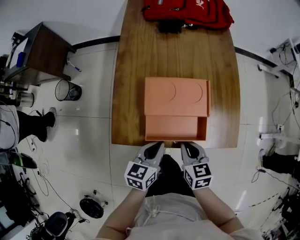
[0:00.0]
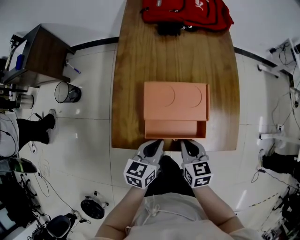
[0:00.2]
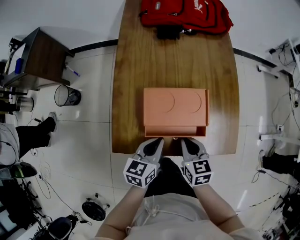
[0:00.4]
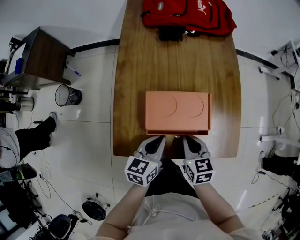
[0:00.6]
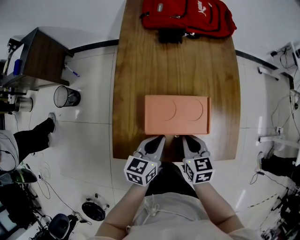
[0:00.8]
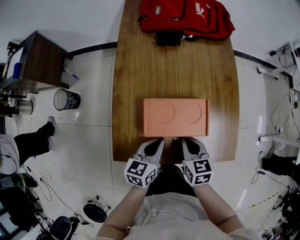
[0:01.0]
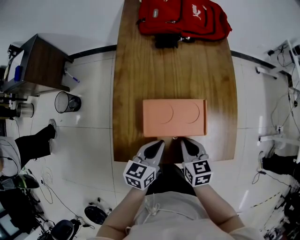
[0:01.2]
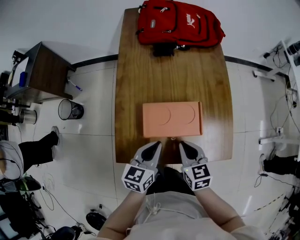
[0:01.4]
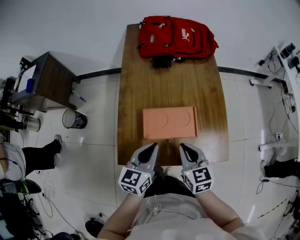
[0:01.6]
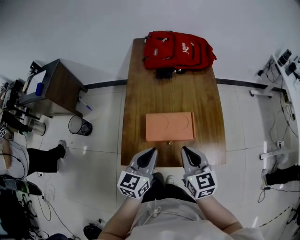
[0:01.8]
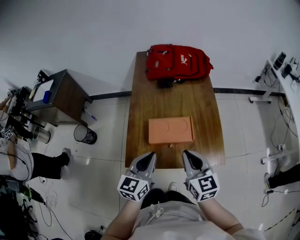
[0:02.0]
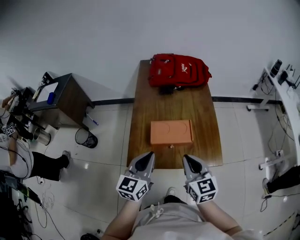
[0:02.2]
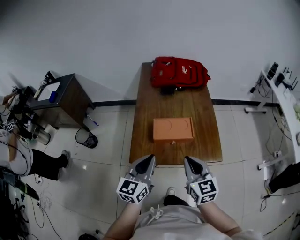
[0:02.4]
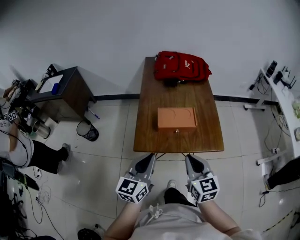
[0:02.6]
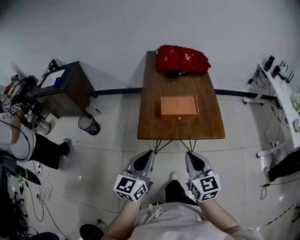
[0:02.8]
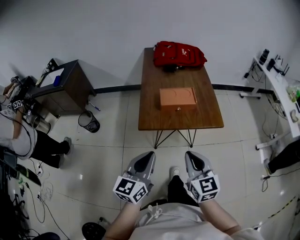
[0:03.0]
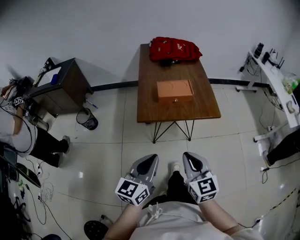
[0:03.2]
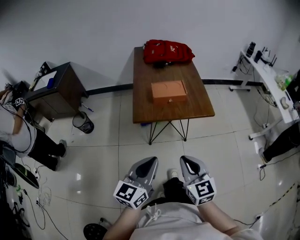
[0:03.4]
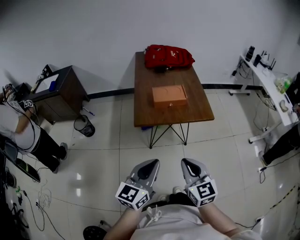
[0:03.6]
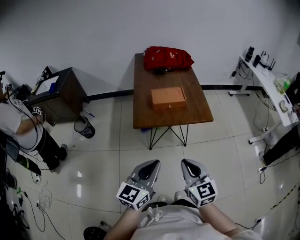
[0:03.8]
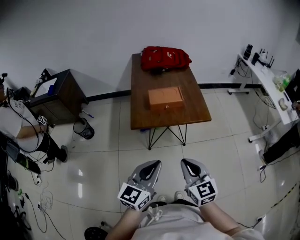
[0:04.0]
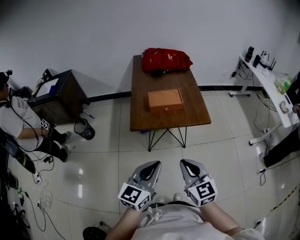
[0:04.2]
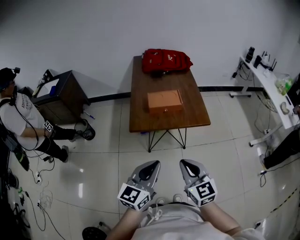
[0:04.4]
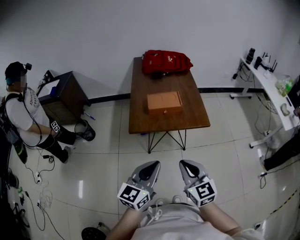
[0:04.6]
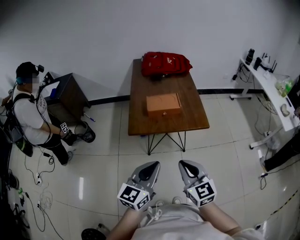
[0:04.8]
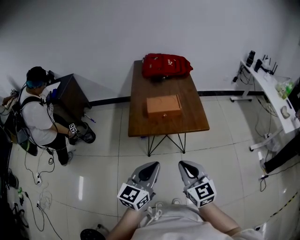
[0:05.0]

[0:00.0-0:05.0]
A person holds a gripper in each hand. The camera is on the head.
0:00.0 to 0:01.6: Both grippers travel together upward and forward, roughly 15 cm.
0:01.6 to 0:03.4: Both grippers are carried backward, about 40 cm.
0:03.4 to 0:05.0: The grippers both shift to the right by about 5 cm.

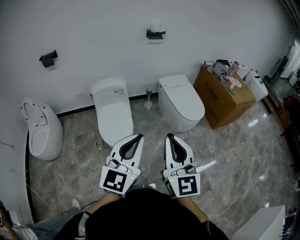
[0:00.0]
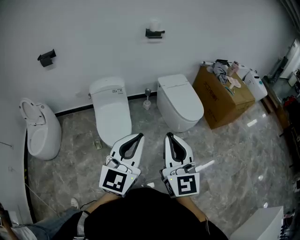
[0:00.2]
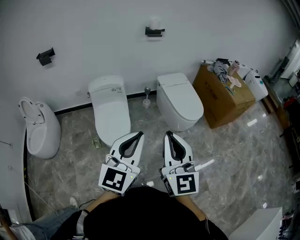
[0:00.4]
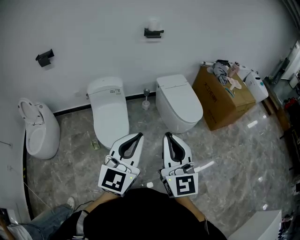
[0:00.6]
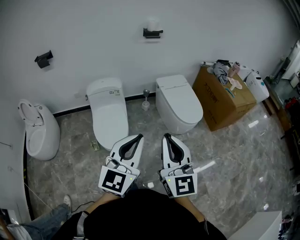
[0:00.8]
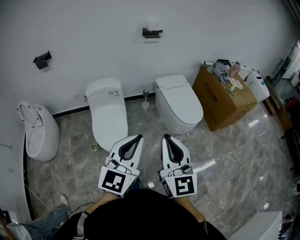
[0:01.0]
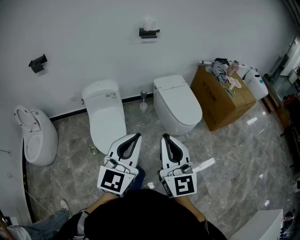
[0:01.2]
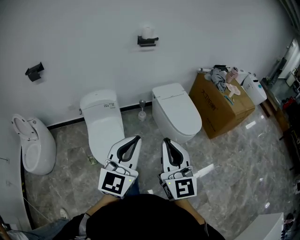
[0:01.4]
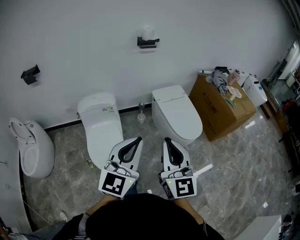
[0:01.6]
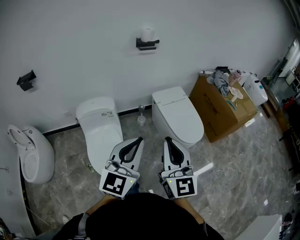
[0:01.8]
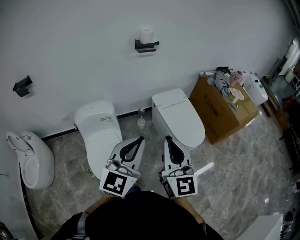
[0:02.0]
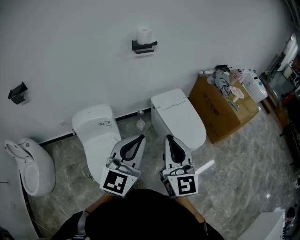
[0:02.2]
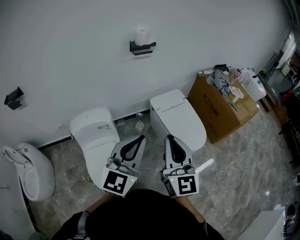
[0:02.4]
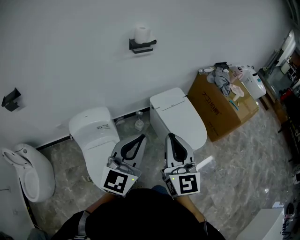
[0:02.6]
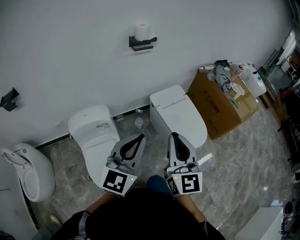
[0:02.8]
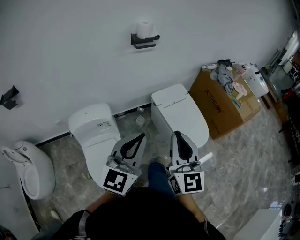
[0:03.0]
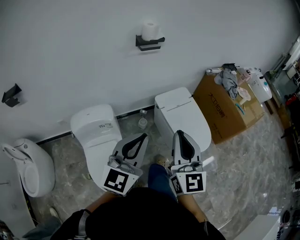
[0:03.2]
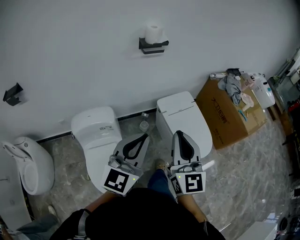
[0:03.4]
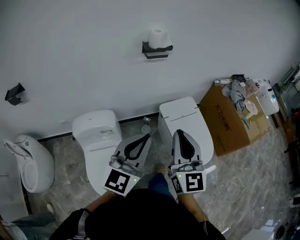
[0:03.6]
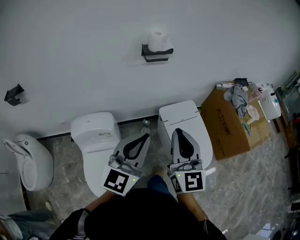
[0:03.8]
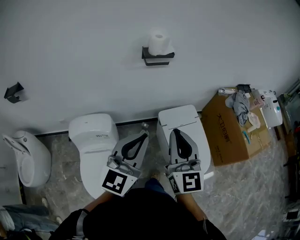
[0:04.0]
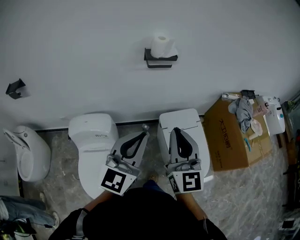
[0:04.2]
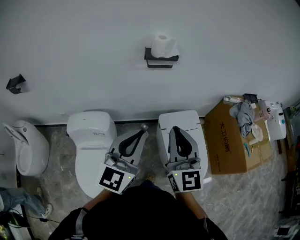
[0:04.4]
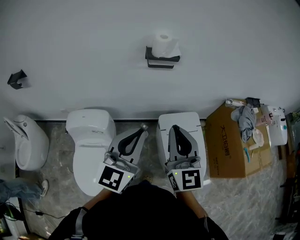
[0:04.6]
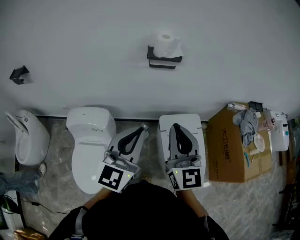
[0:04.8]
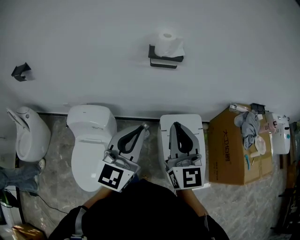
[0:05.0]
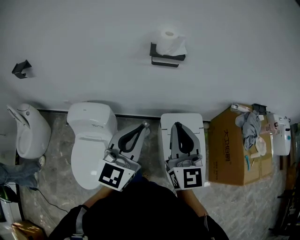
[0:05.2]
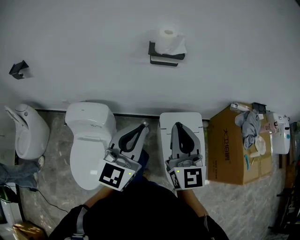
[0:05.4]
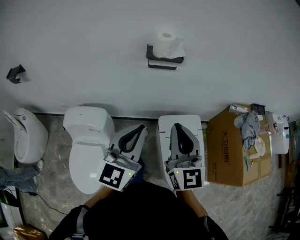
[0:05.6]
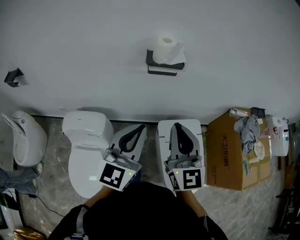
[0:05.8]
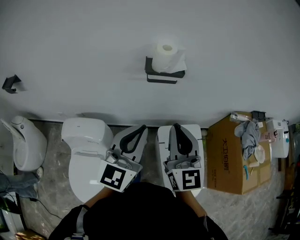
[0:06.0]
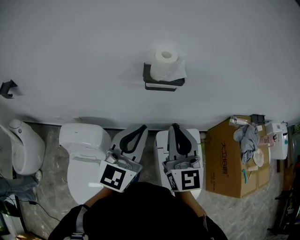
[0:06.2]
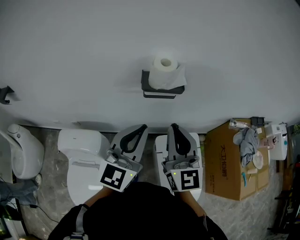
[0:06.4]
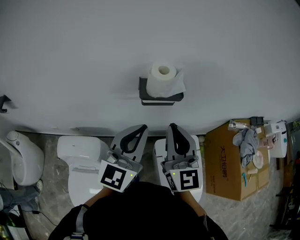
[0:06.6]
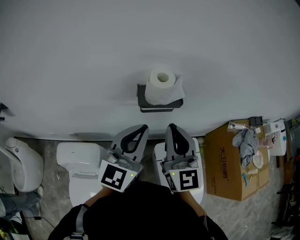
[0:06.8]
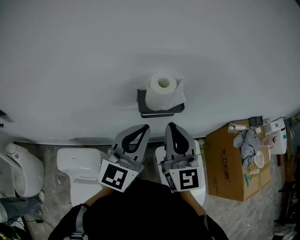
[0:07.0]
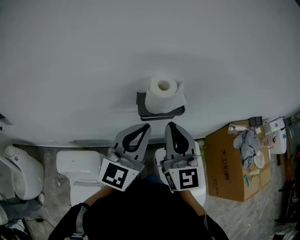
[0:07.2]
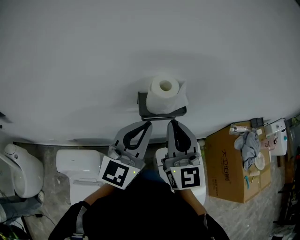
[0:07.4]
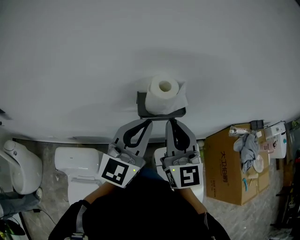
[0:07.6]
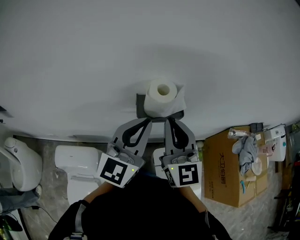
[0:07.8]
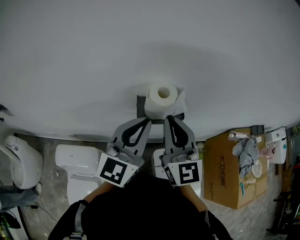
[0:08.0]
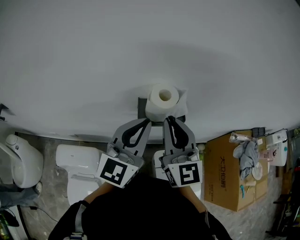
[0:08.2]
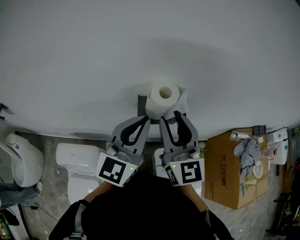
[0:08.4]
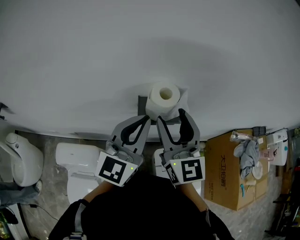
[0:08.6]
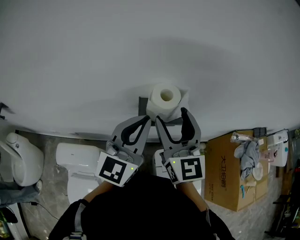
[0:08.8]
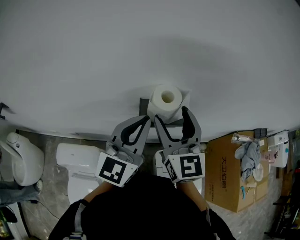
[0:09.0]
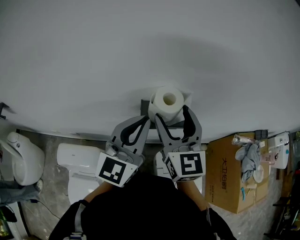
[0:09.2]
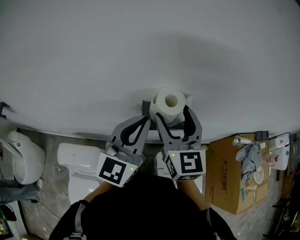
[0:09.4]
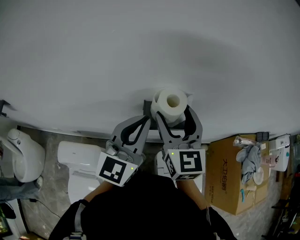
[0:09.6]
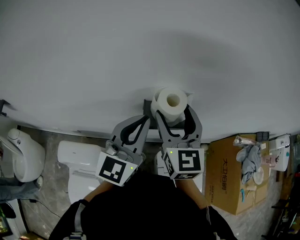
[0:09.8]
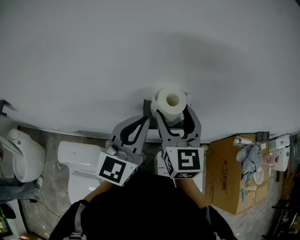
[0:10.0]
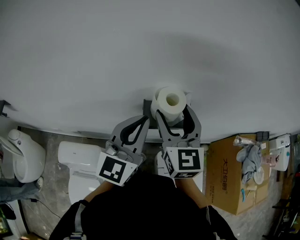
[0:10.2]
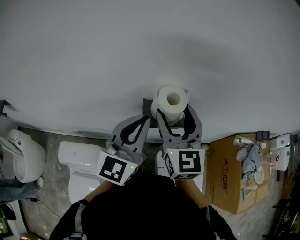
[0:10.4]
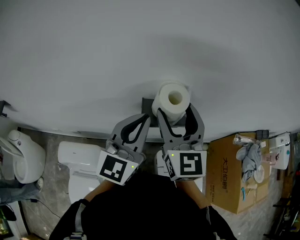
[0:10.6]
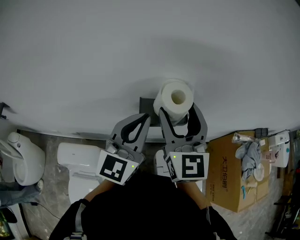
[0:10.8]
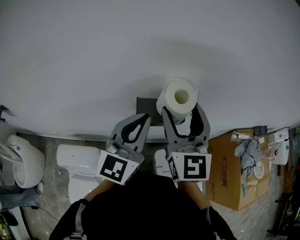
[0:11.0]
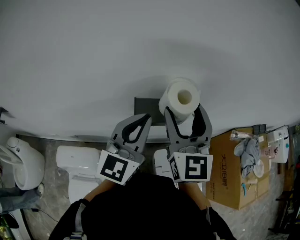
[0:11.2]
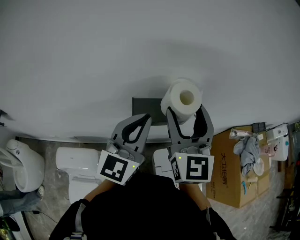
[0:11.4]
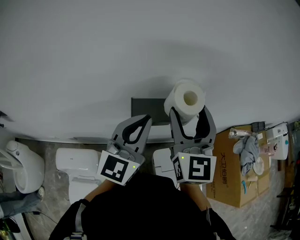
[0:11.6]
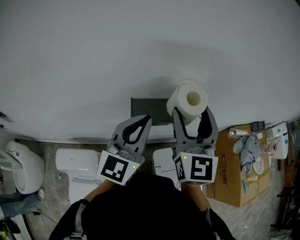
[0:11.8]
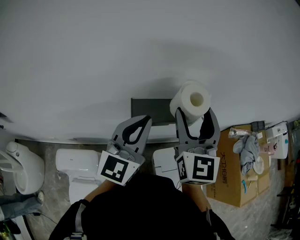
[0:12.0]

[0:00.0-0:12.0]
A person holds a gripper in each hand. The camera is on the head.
0:00.0 to 0:01.6: Both grippers travel together forward, about 20 cm.
0:01.6 to 0:03.0: Both grippers move forward, roughly 25 cm.
0:03.0 to 0:04.4: Both grippers move forward, about 25 cm.
0:04.4 to 0:06.0: Both grippers travel together forward, approximately 15 cm.
0:06.0 to 0:07.6: The two grippers go roughly 20 cm forward.
0:07.6 to 0:09.0: The right gripper moves forward, some 5 cm, and opens up.
0:09.0 to 0:10.4: The grippers stay close to where they were, moving slightly.
0:10.4 to 0:12.0: The right gripper is displaced to the right by roughly 10 cm.

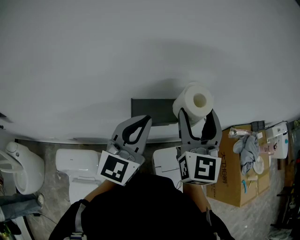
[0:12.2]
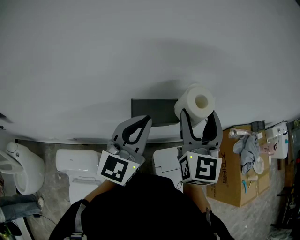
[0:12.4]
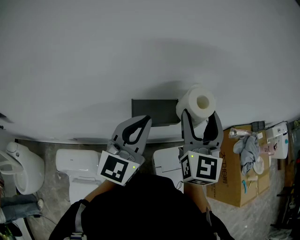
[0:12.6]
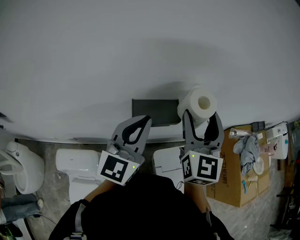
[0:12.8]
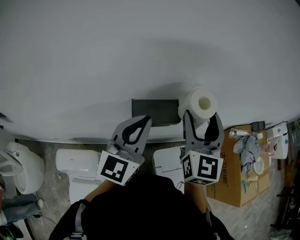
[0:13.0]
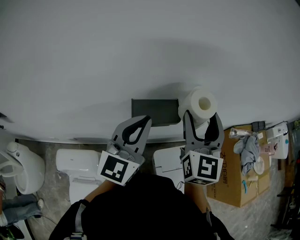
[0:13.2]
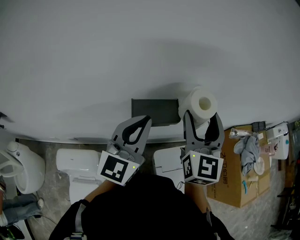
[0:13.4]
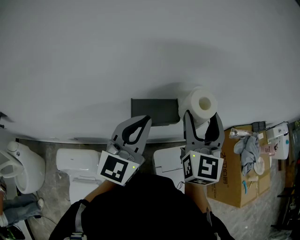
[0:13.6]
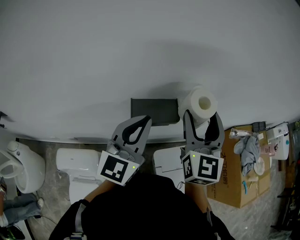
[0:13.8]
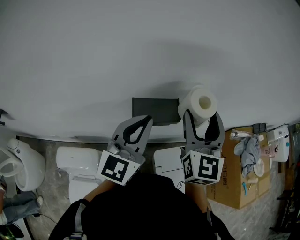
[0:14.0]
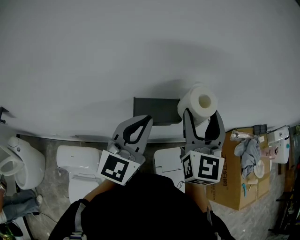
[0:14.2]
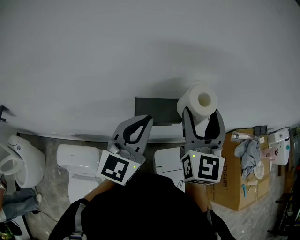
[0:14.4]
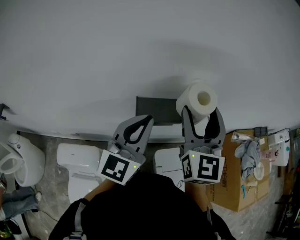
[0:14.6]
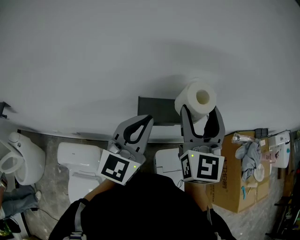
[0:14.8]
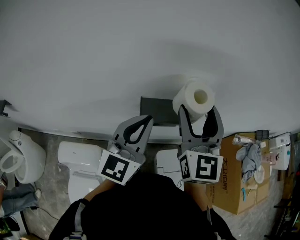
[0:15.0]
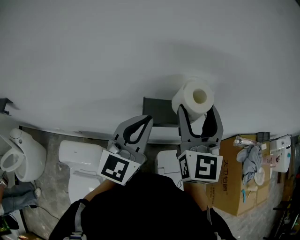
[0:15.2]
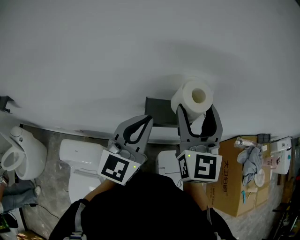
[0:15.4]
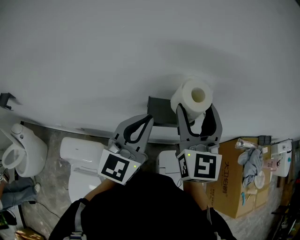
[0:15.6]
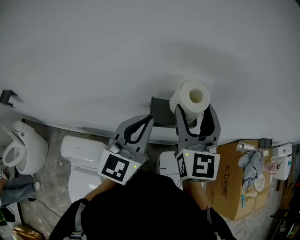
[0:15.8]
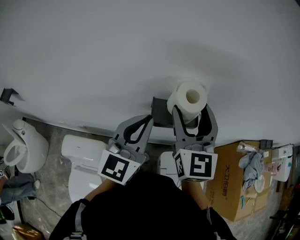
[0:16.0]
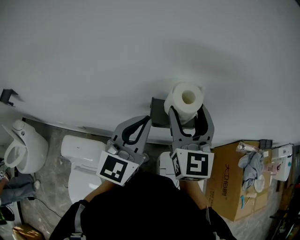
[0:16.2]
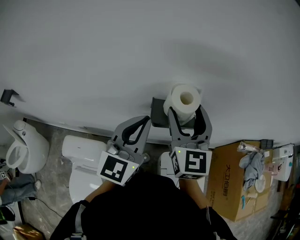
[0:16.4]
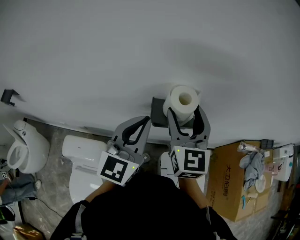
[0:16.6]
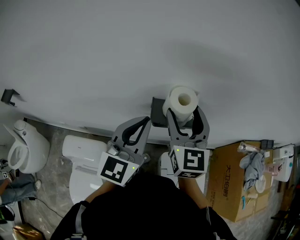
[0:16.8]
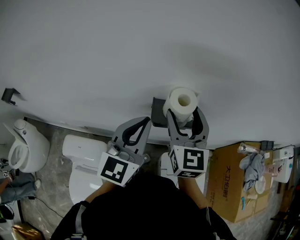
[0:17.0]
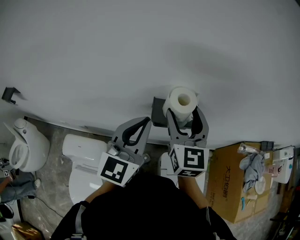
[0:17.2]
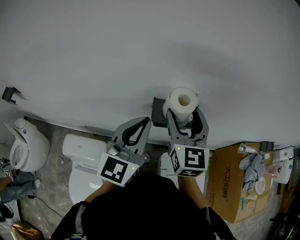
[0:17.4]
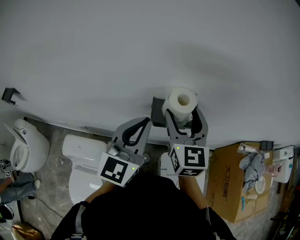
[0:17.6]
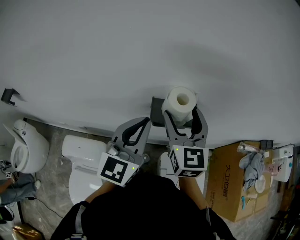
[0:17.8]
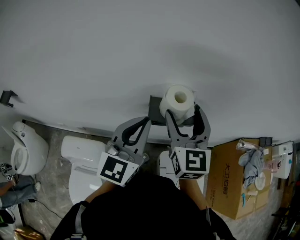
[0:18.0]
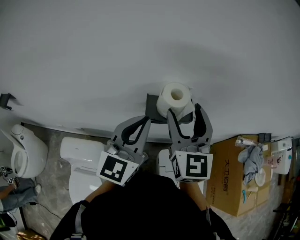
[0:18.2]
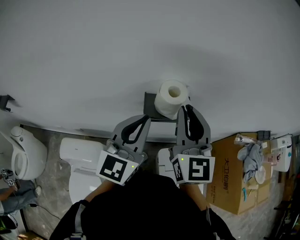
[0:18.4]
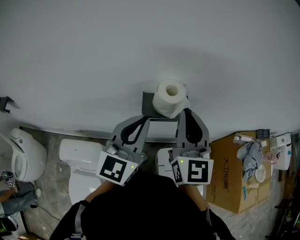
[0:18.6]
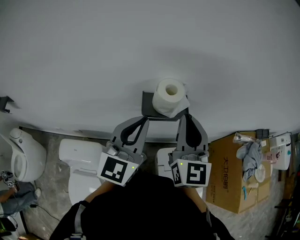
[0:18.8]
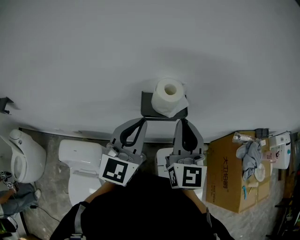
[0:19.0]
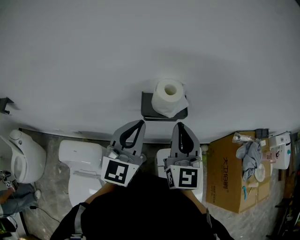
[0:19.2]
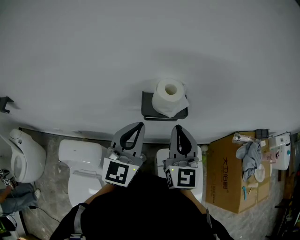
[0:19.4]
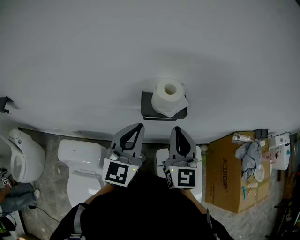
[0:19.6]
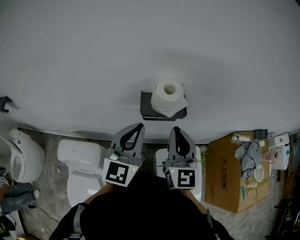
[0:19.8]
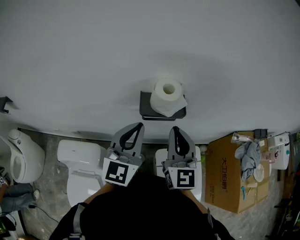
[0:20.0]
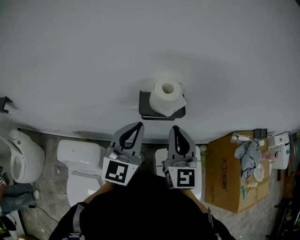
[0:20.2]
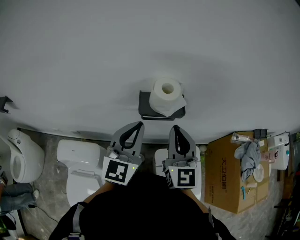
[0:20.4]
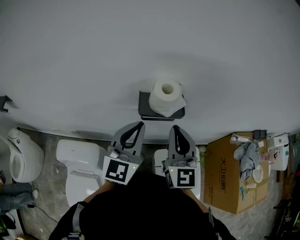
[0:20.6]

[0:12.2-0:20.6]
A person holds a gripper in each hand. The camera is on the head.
0:12.2 to 0:13.6: There are only small adjustments of the grippers.
0:13.6 to 0:15.0: The right gripper moves to the left, some 5 cm.
0:15.0 to 0:16.4: The right gripper moves to the left, about 5 cm.
0:16.4 to 0:17.8: The grippers stay close to where they were, moving slightly.
0:17.8 to 0:19.2: The right gripper moves backward, roughly 5 cm, and closes.
0:19.2 to 0:20.6: The grippers move only a little.
